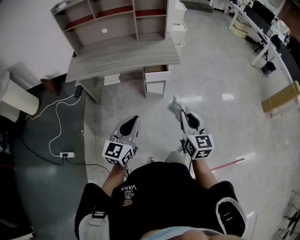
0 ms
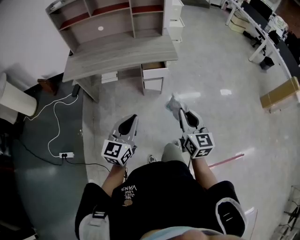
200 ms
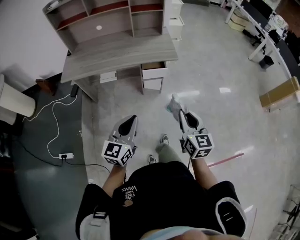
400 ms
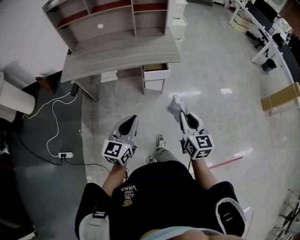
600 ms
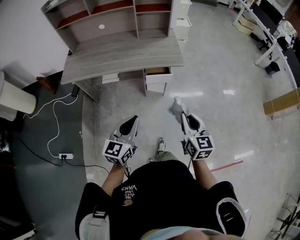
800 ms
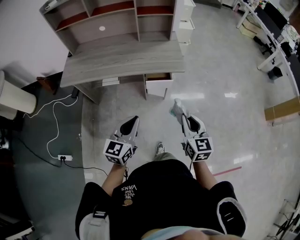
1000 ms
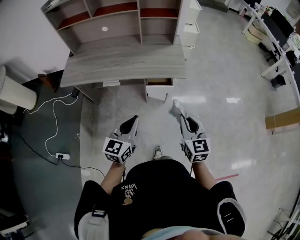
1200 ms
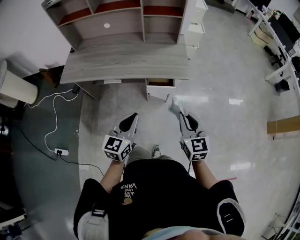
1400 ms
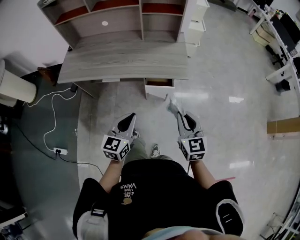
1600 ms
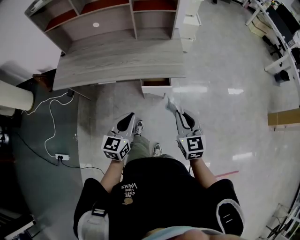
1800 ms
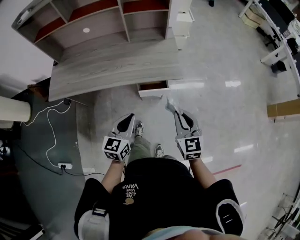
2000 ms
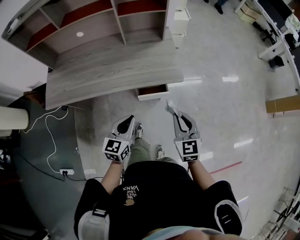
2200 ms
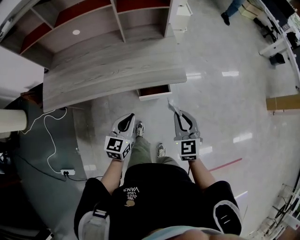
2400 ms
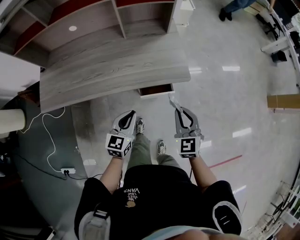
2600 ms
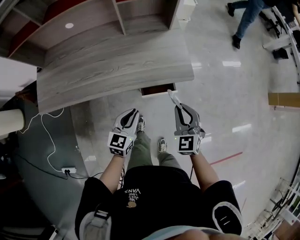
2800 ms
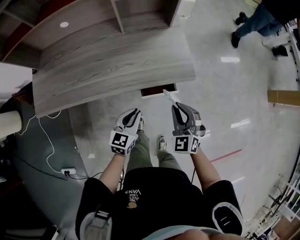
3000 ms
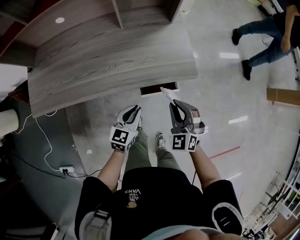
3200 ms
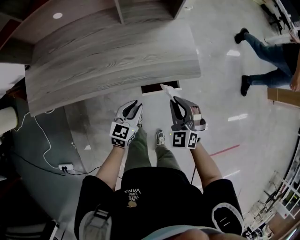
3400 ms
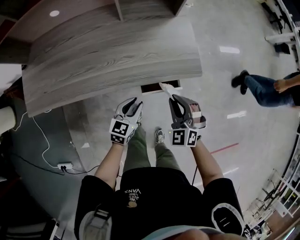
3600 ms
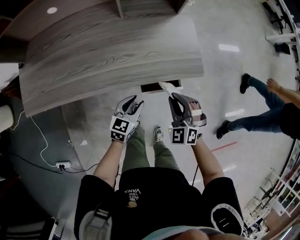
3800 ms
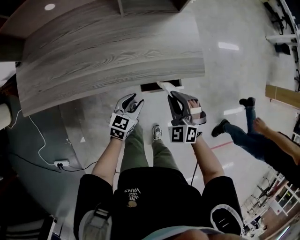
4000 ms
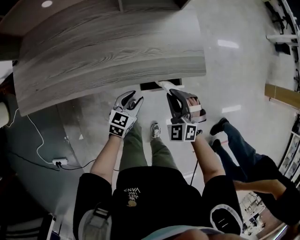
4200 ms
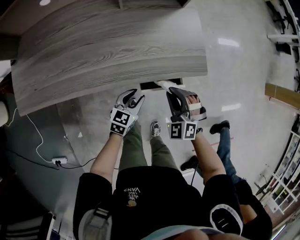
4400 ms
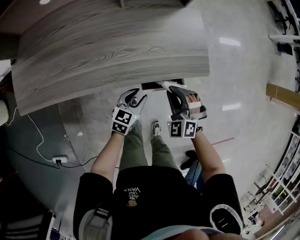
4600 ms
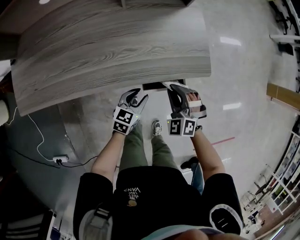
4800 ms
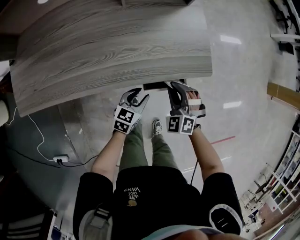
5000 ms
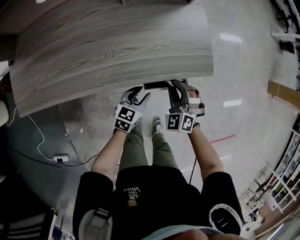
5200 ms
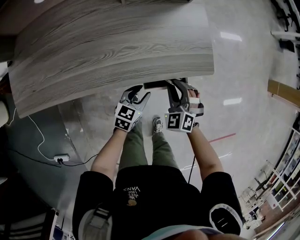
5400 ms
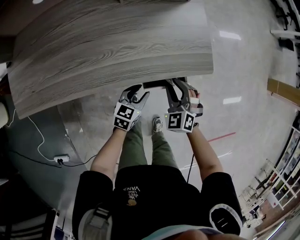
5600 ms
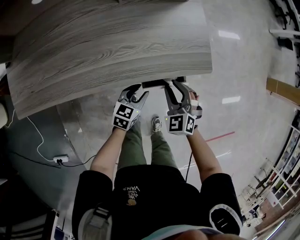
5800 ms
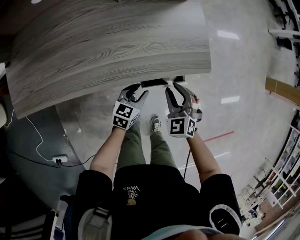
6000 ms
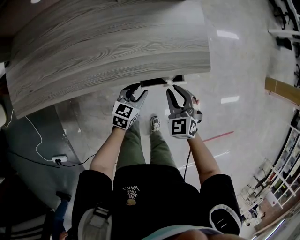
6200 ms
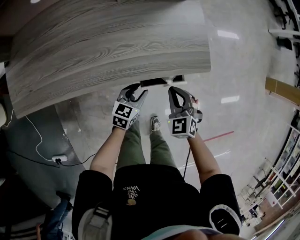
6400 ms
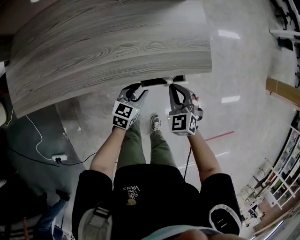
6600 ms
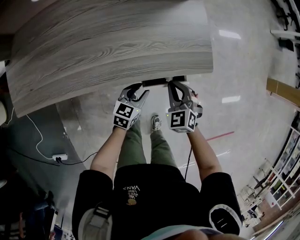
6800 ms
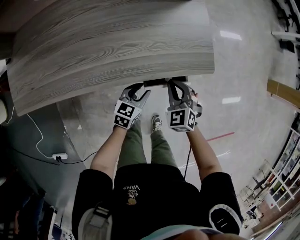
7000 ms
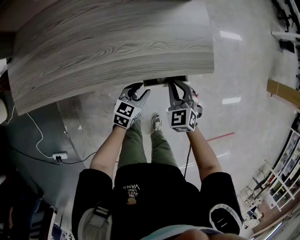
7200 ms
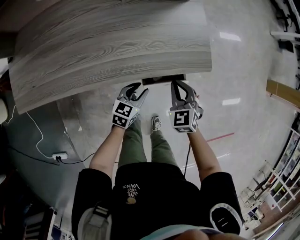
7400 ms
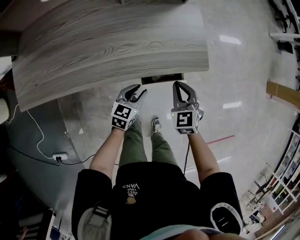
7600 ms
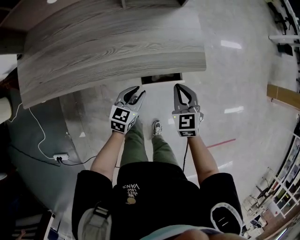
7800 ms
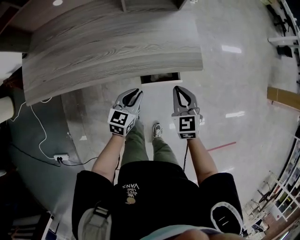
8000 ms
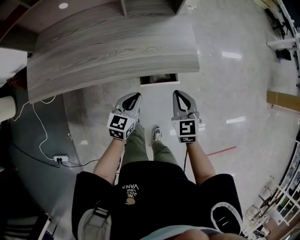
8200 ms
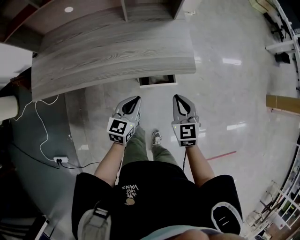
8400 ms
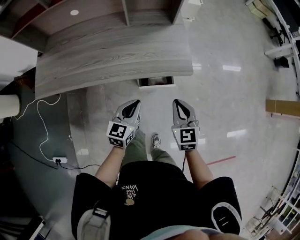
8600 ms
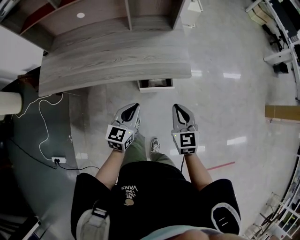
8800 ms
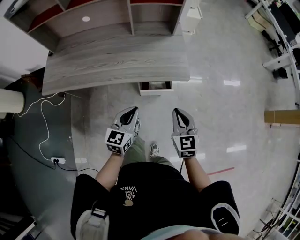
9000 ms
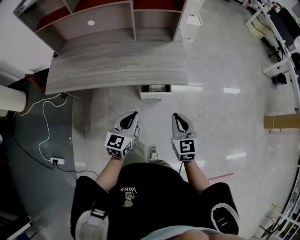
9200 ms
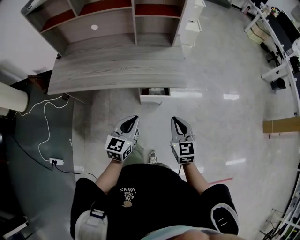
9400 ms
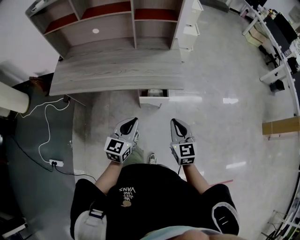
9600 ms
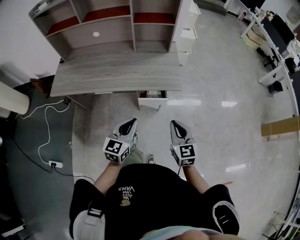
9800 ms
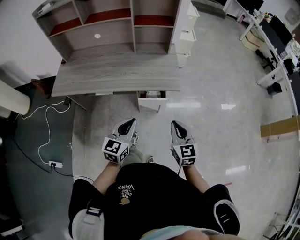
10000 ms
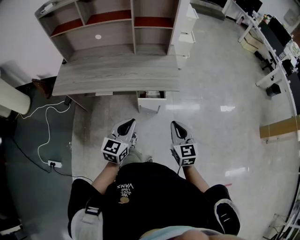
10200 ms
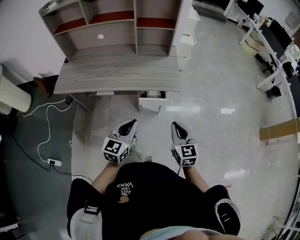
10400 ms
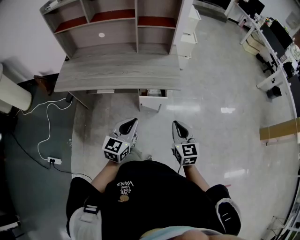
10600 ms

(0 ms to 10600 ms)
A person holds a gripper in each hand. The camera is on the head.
0 ms - 1600 ms: Both grippers travel together forward, roughly 25 cm.
1600 ms - 3000 ms: The left gripper moves forward and downward, some 25 cm, and changes its angle by roughly 20 degrees. The right gripper moves forward, downward and to the left, about 20 cm, and swivels roughly 30 degrees.
3000 ms - 4600 ms: The grippers both shift downward by roughly 10 cm. The left gripper opens its fingers. The right gripper swivels some 20 degrees.
4600 ms - 6000 ms: The right gripper rotates about 20 degrees.
6000 ms - 7600 ms: The right gripper closes its fingers.
7600 ms - 9000 ms: The right gripper goes about 20 cm upward, backward and to the right, and rotates roughly 20 degrees. Meanwhile the left gripper heads upward and backward, covering approximately 25 cm, rotates roughly 20 degrees, and closes its fingers.
9000 ms - 10600 ms: The grippers both shift backward and upward by about 15 cm.

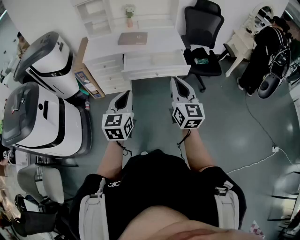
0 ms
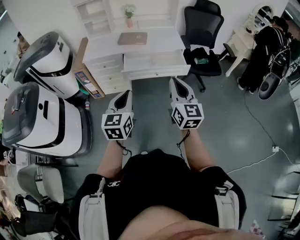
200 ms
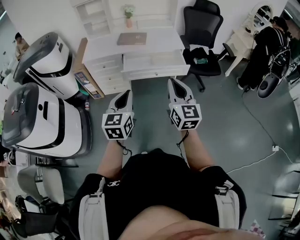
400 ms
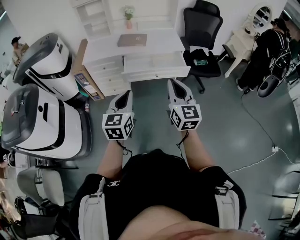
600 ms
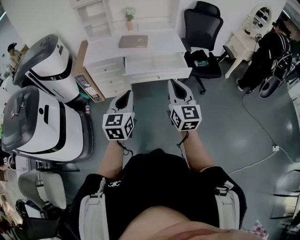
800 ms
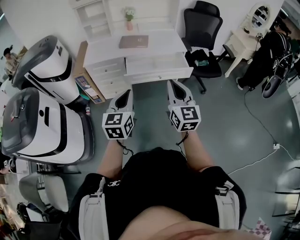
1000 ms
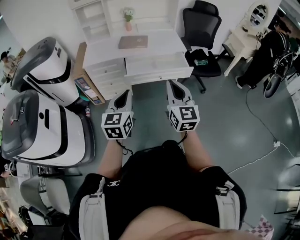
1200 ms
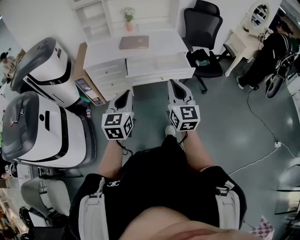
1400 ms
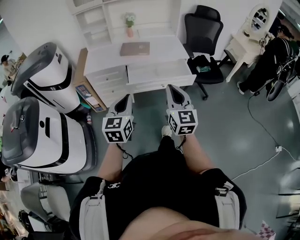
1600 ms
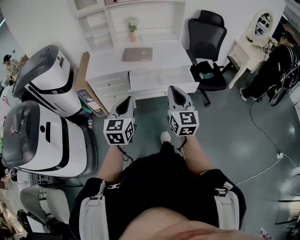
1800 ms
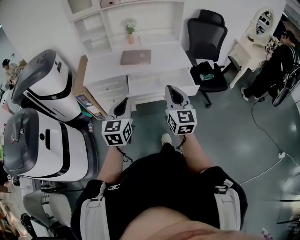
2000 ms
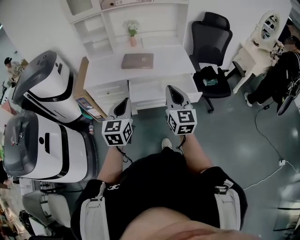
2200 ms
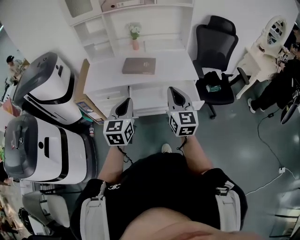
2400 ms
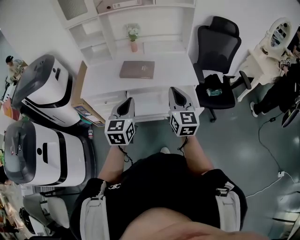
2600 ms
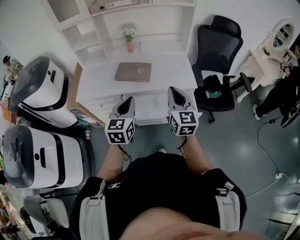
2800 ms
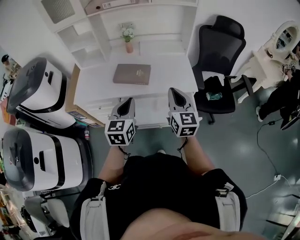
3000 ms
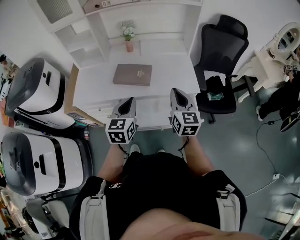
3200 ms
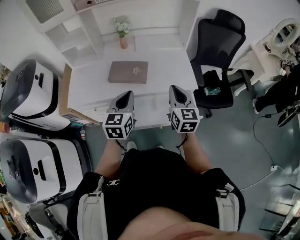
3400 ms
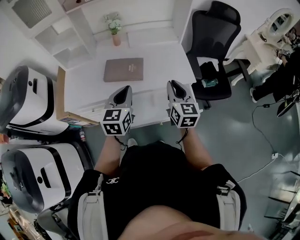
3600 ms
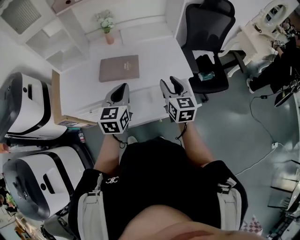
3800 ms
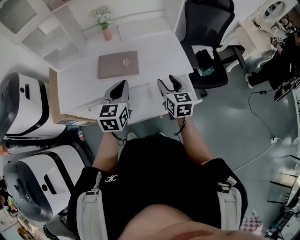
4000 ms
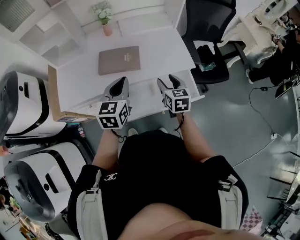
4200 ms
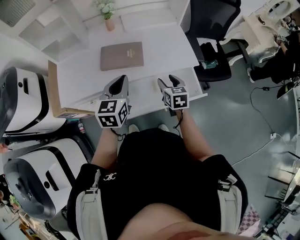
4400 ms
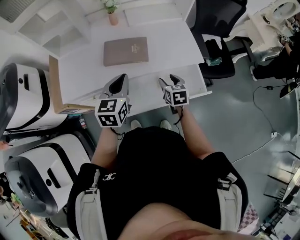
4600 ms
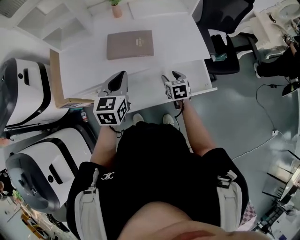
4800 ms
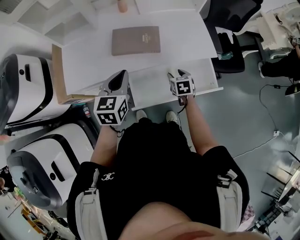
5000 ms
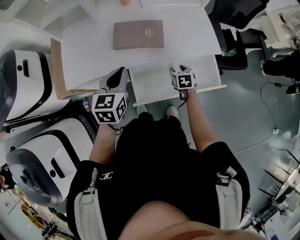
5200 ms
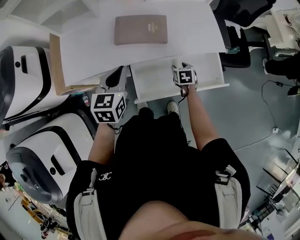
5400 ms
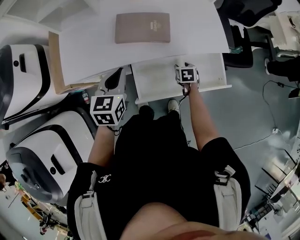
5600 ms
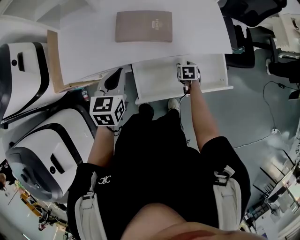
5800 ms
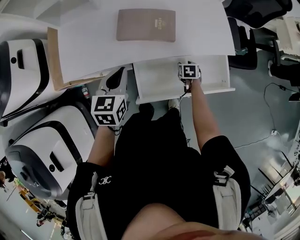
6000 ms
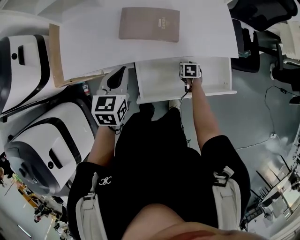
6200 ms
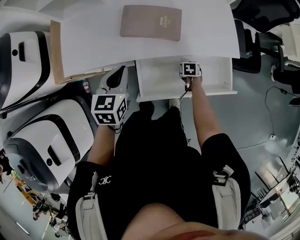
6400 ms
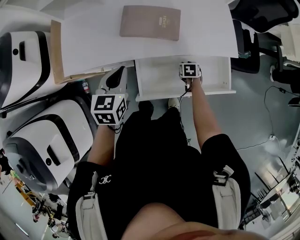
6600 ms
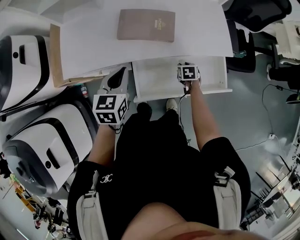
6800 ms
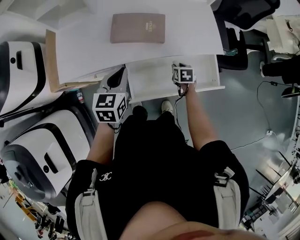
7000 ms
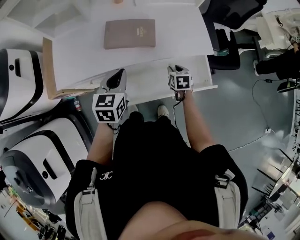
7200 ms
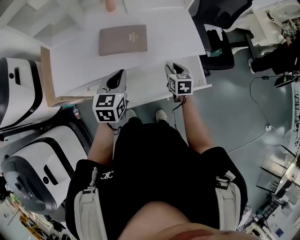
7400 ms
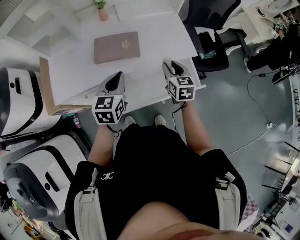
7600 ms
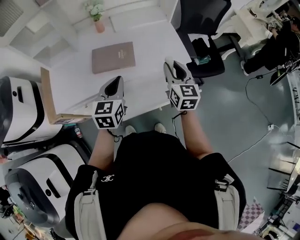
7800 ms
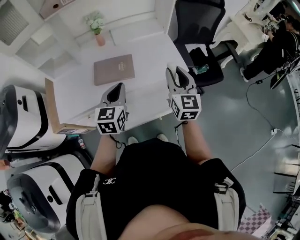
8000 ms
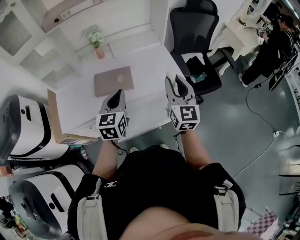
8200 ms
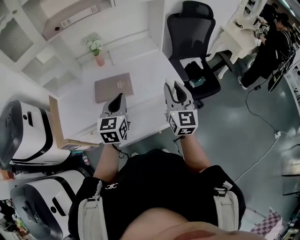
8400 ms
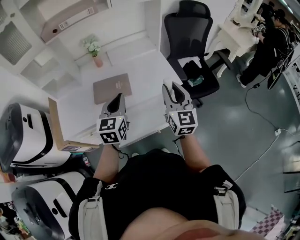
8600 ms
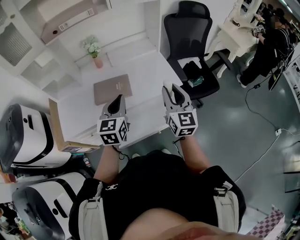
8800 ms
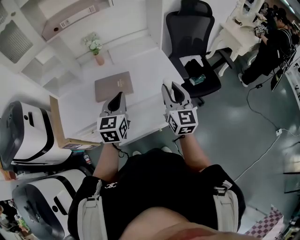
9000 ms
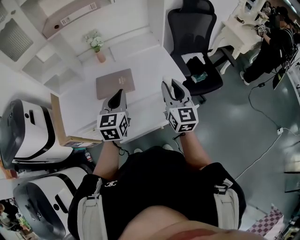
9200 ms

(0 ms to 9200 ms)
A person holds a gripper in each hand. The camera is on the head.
0 ms - 1600 ms: The left gripper is displaced forward and to the left by about 10 cm, while the right gripper heads to the left and forward, covering about 10 cm.
1600 ms - 3000 ms: The two grippers go some 40 cm forward.
3000 ms - 4600 ms: The left gripper goes approximately 15 cm forward, to the left and downward, while the right gripper shifts about 25 cm downward and forward, tilts its fingers about 40 degrees downward, and opens up.
4600 ms - 6200 ms: The left gripper moves downward and to the left, about 15 cm. Meanwhile the right gripper is displaced downward by roughly 25 cm, and swivels approximately 30 degrees.
6200 ms - 7600 ms: The right gripper travels upward by some 30 cm, and tilts its fingers some 40 degrees upward, while the left gripper travels to the right and upward by approximately 15 cm.
7600 ms - 9200 ms: The left gripper heads upward and to the right, covering about 10 cm, while the right gripper is displaced upward by some 20 cm, and swivels approximately 30 degrees.

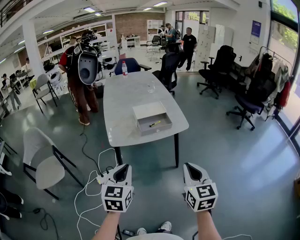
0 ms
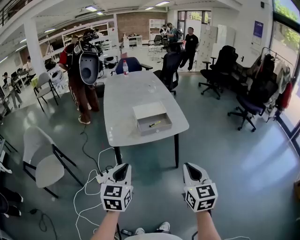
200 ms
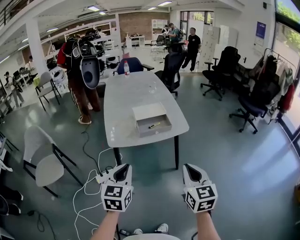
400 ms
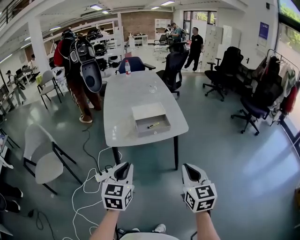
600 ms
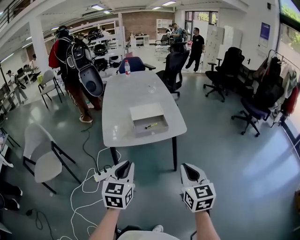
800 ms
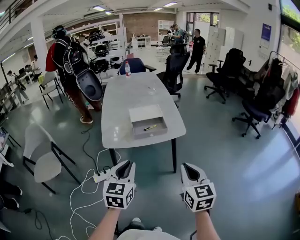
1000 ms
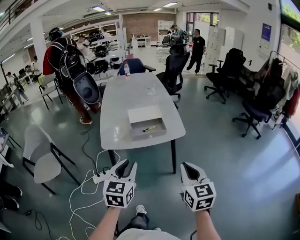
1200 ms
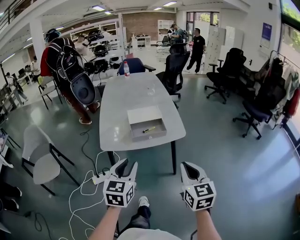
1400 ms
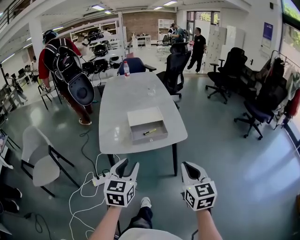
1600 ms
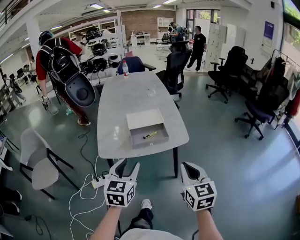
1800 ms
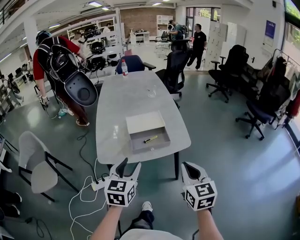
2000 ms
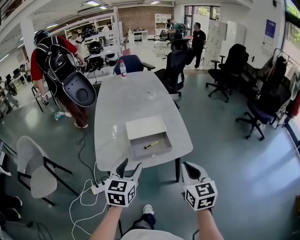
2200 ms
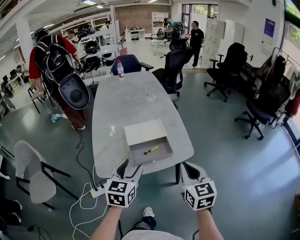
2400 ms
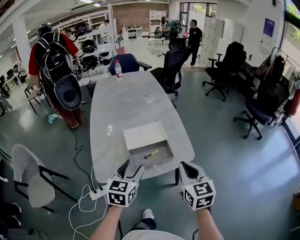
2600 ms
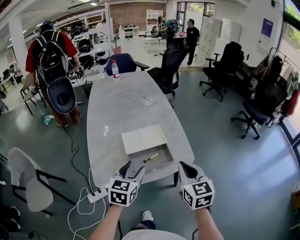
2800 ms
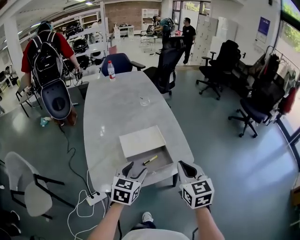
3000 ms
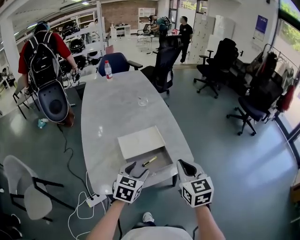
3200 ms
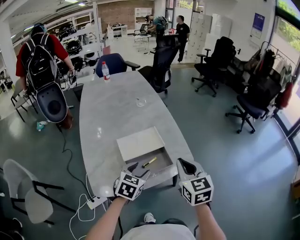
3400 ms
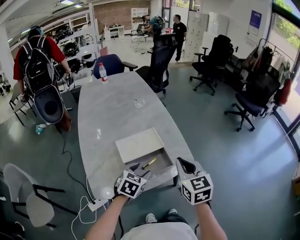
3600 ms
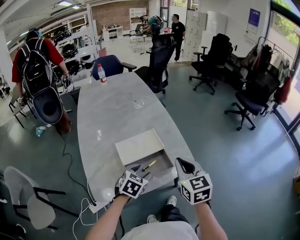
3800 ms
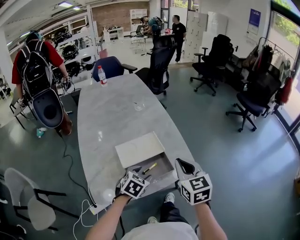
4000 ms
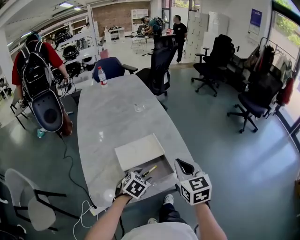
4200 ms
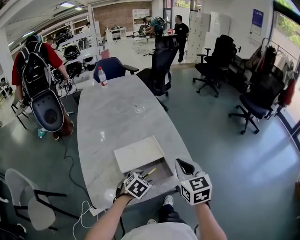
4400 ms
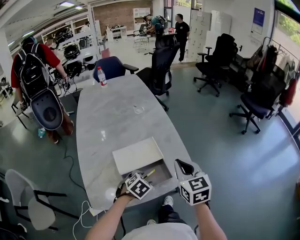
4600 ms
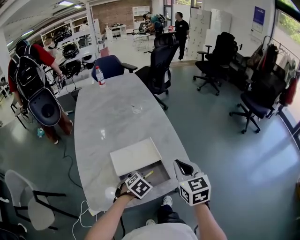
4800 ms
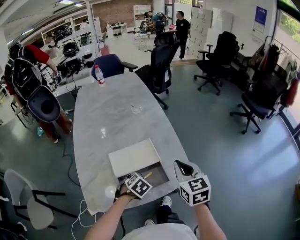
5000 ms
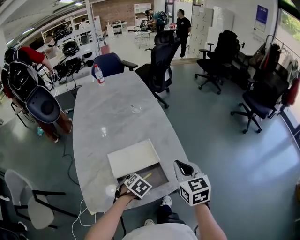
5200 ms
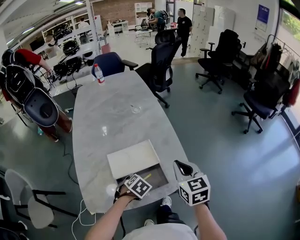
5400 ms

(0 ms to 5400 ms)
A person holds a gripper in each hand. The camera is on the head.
0 ms - 1400 ms: The right gripper heads forward and to the right, covering approximately 10 cm. The left gripper heads to the right and forward, covering about 15 cm.
1400 ms - 2800 ms: The two grippers go approximately 25 cm forward. The left gripper opens its fingers.
2800 ms - 4000 ms: The right gripper is displaced forward by some 10 cm; the left gripper shifts roughly 15 cm downward and forward, and changes its angle by approximately 30 degrees.
4000 ms - 5400 ms: The right gripper heads forward, covering about 10 cm. Meanwhile the left gripper travels downward by some 10 cm, and rotates approximately 20 degrees.
